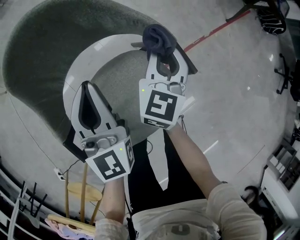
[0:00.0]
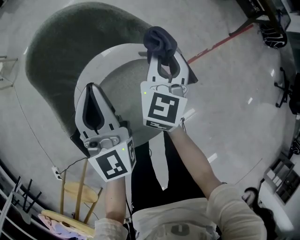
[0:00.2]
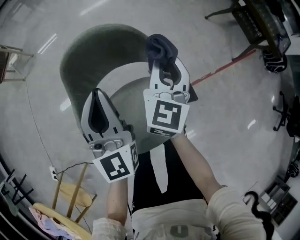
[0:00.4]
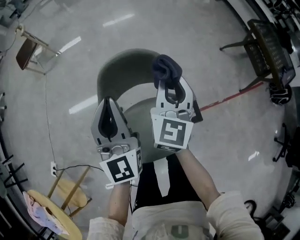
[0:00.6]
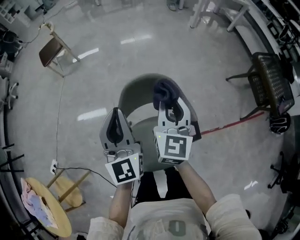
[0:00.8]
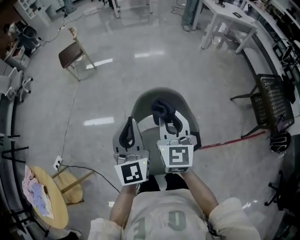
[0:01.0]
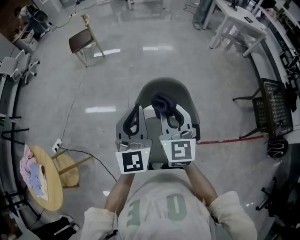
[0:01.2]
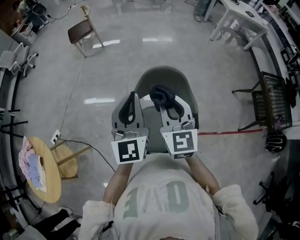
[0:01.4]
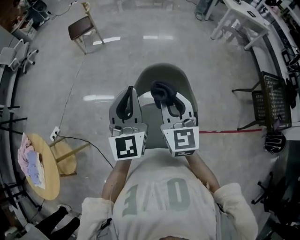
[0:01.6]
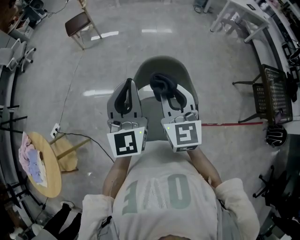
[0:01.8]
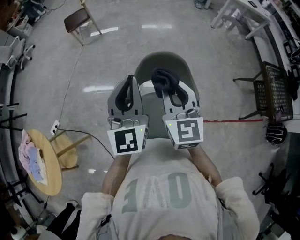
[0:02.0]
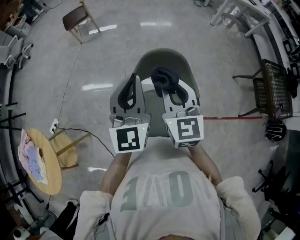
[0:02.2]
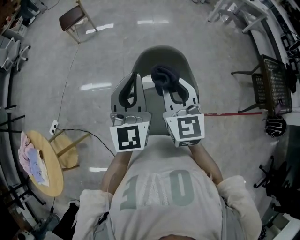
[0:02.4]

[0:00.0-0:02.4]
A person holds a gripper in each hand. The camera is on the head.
0:00.0 to 0:01.2: The grippers both shift upward by about 35 cm. The left gripper changes its angle by roughly 30 degrees. The right gripper changes its angle by some 60 degrees.
0:01.2 to 0:02.4: The grippers make only small movements.

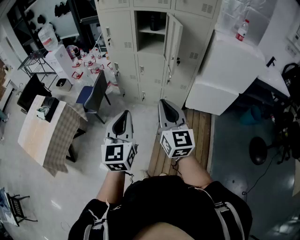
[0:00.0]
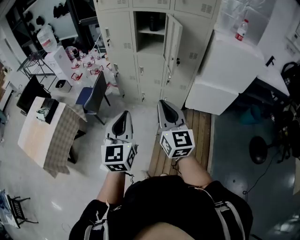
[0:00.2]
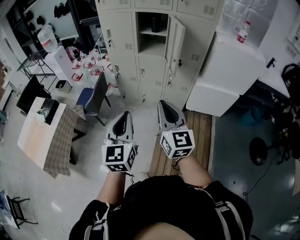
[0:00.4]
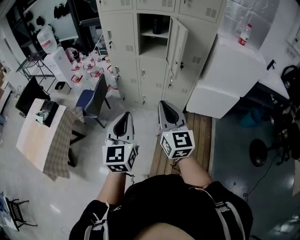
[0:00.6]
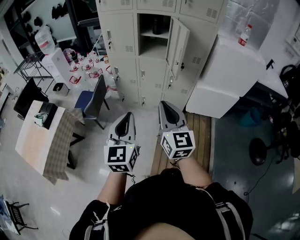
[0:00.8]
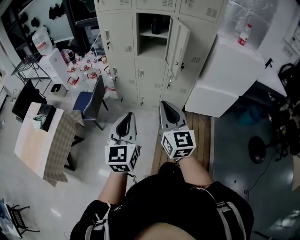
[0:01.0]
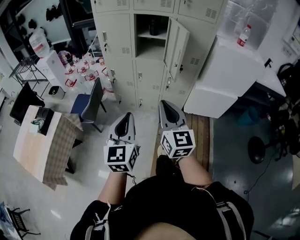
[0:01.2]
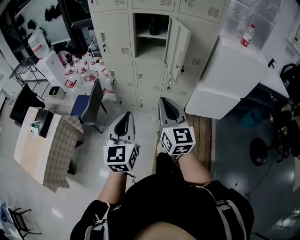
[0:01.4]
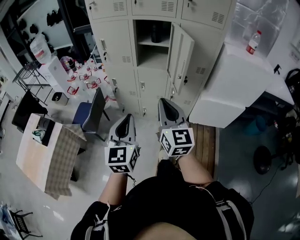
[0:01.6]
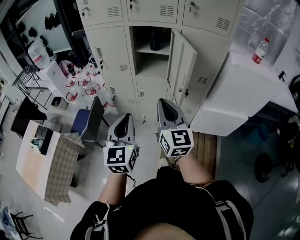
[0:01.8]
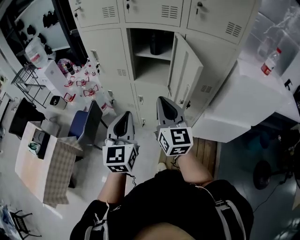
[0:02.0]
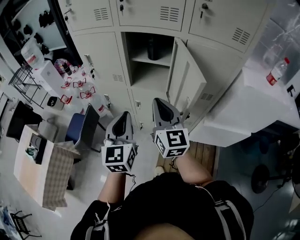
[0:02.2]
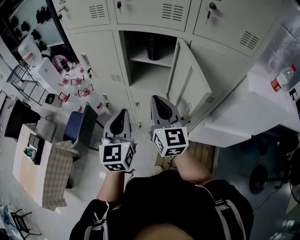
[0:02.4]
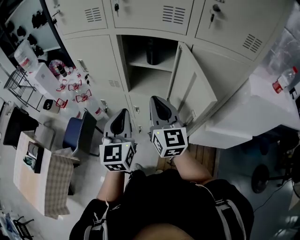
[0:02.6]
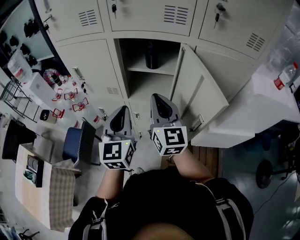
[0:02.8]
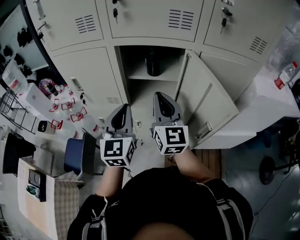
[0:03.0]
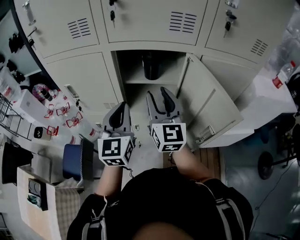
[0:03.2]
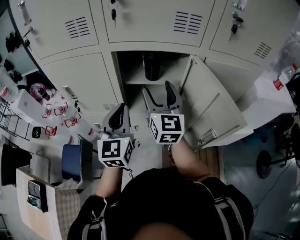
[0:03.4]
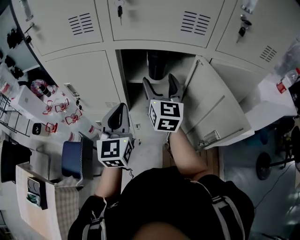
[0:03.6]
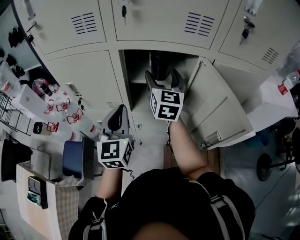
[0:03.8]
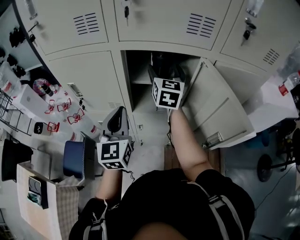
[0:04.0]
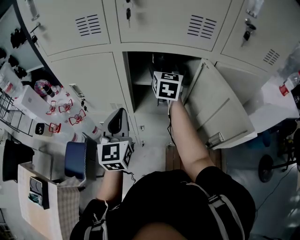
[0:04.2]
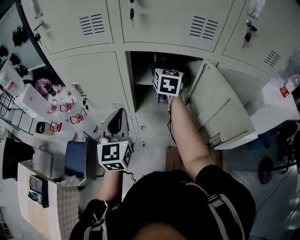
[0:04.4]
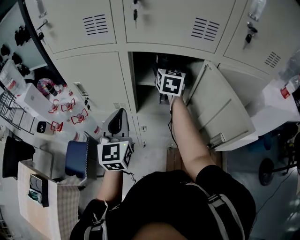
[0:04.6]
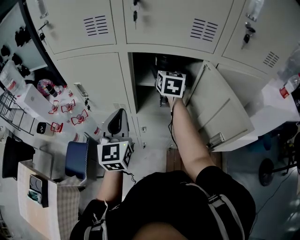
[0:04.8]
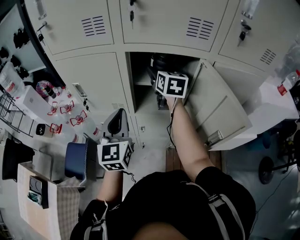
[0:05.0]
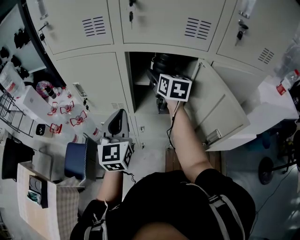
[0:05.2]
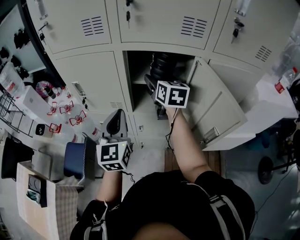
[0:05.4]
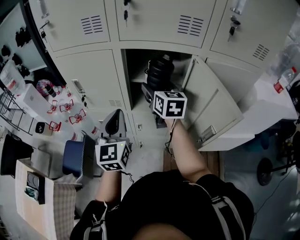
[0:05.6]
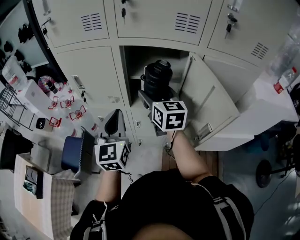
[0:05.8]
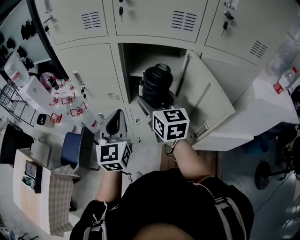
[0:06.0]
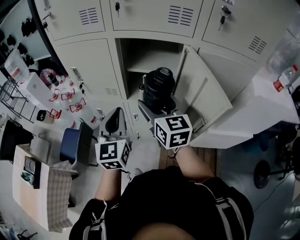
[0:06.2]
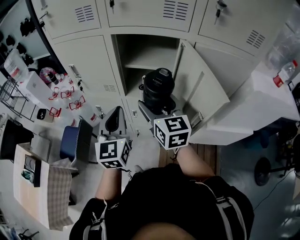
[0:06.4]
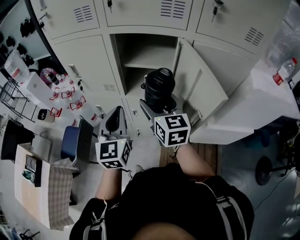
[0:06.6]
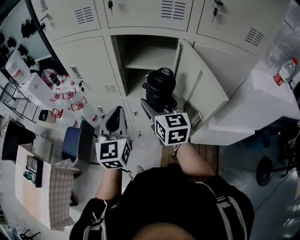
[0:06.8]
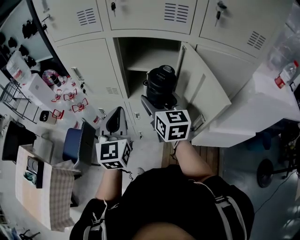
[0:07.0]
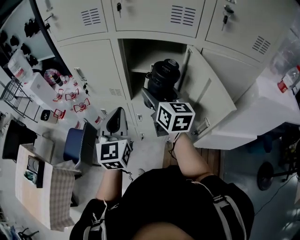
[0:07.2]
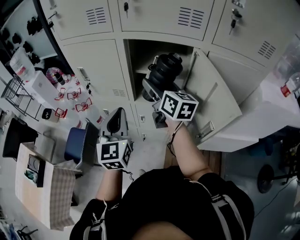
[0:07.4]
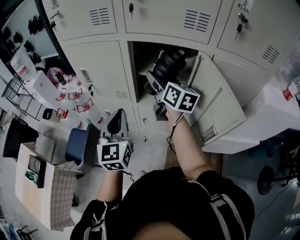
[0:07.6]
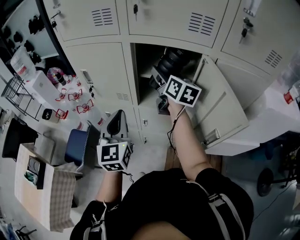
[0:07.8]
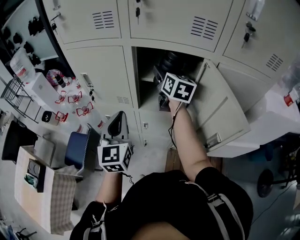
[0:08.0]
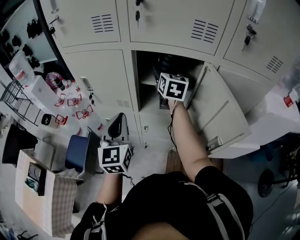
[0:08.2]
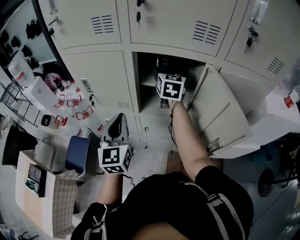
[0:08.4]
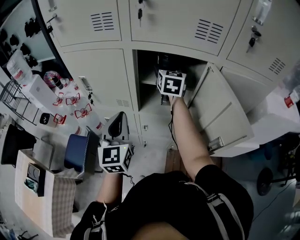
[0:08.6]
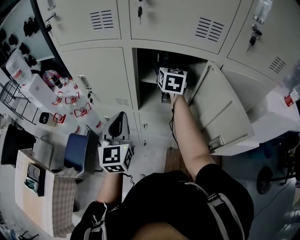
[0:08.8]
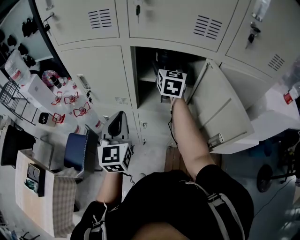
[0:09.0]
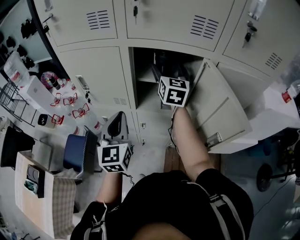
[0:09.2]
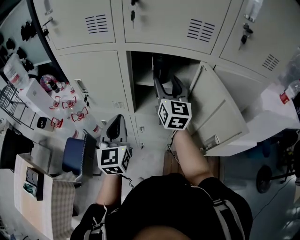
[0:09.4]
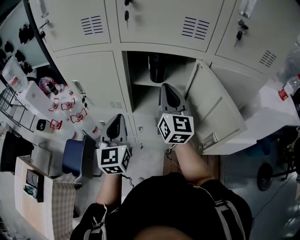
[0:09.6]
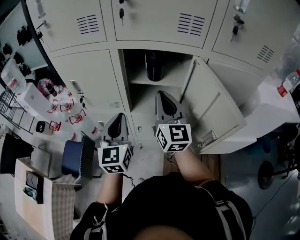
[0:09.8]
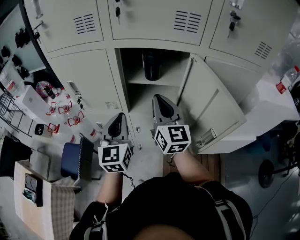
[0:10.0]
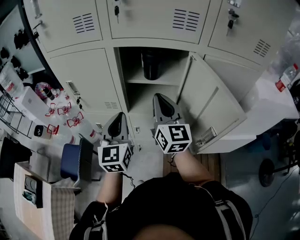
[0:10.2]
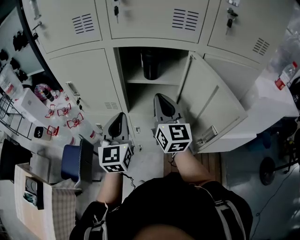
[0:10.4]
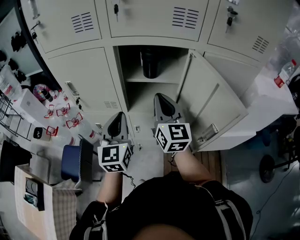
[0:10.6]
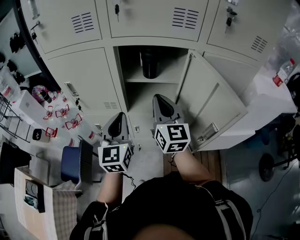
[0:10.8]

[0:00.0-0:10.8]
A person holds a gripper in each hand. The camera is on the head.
0:00.0 to 0:01.6: Both grippers travel together forward, approximately 20 cm.
0:01.6 to 0:03.0: The two grippers travel together, forward, some 50 cm.
0:03.0 to 0:04.6: The right gripper travels forward by roughly 25 cm, rotates roughly 20 degrees, and opens its fingers. Meanwhile the left gripper heads to the left, covering about 5 cm.
0:04.6 to 0:06.2: The right gripper is displaced backward by approximately 25 cm, and changes its angle by approximately 30 degrees. The left gripper moves backward and to the right, roughly 10 cm.
0:06.2 to 0:07.8: The right gripper is displaced forward by roughly 15 cm, and rotates about 20 degrees; the left gripper changes place by some 5 cm.
0:07.8 to 0:09.2: The right gripper turns by some 30 degrees.
0:09.2 to 0:10.8: The right gripper moves backward, roughly 15 cm, and closes its fingers.

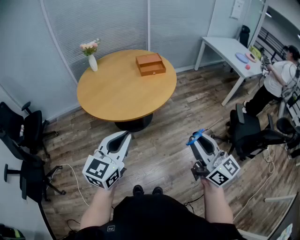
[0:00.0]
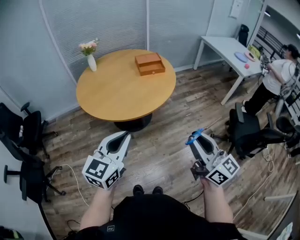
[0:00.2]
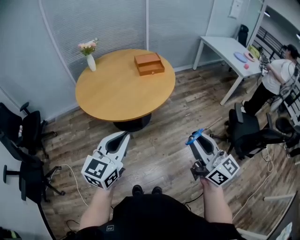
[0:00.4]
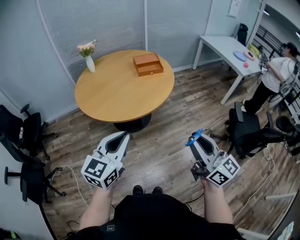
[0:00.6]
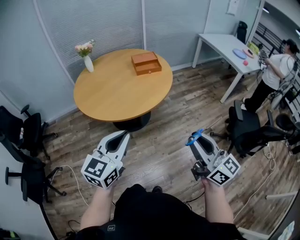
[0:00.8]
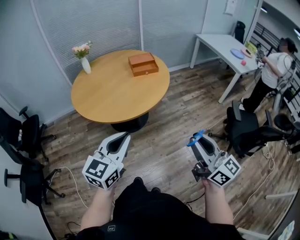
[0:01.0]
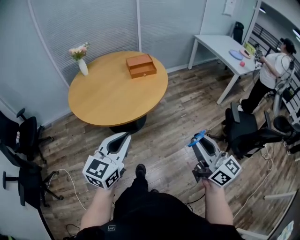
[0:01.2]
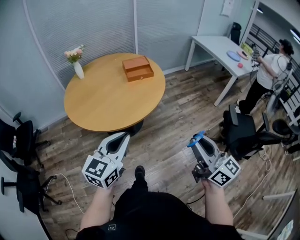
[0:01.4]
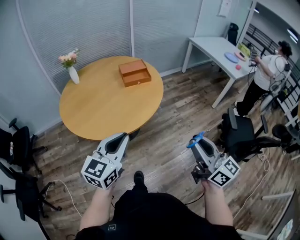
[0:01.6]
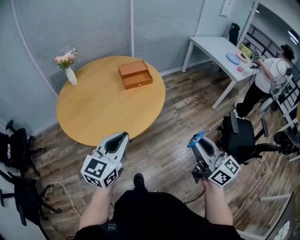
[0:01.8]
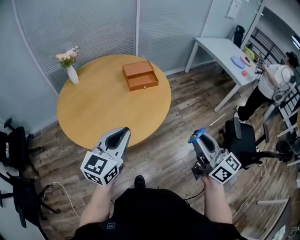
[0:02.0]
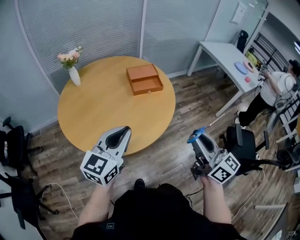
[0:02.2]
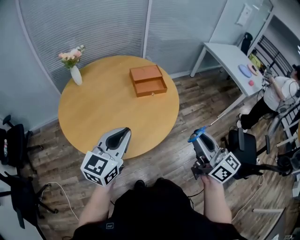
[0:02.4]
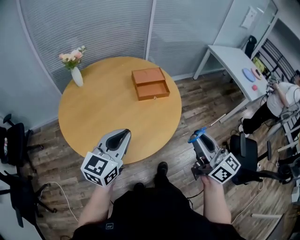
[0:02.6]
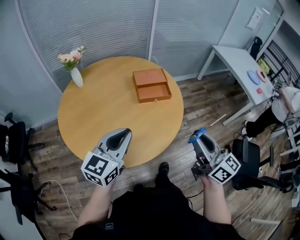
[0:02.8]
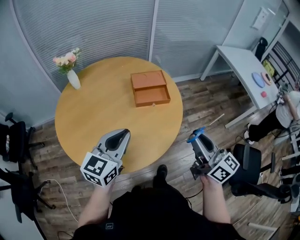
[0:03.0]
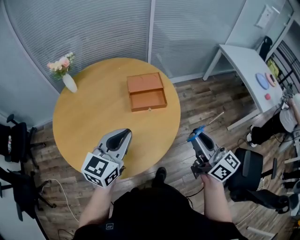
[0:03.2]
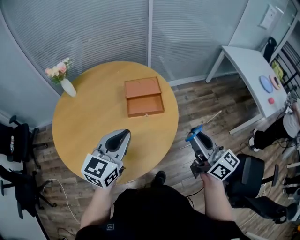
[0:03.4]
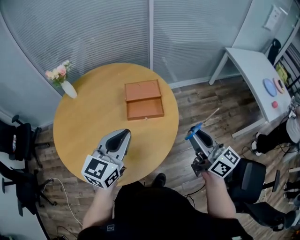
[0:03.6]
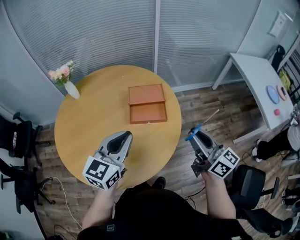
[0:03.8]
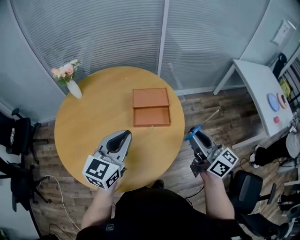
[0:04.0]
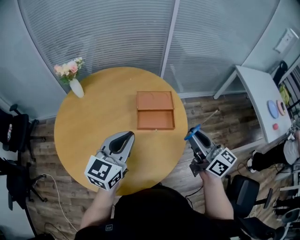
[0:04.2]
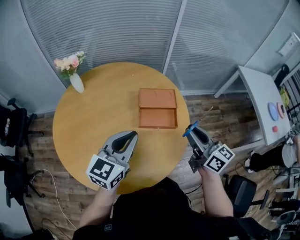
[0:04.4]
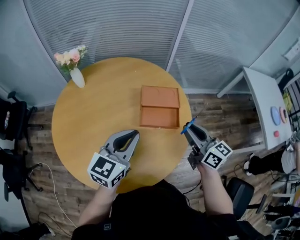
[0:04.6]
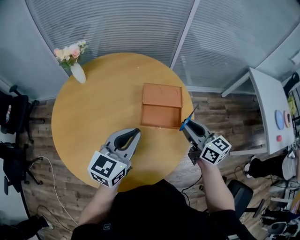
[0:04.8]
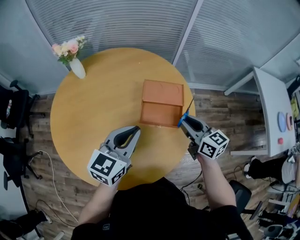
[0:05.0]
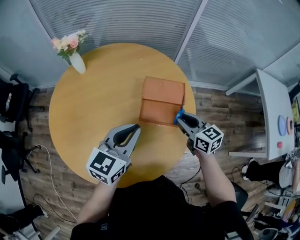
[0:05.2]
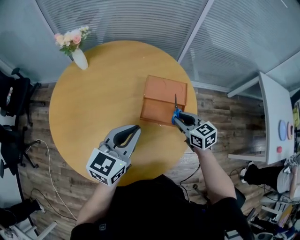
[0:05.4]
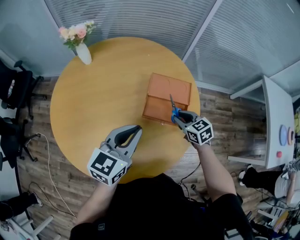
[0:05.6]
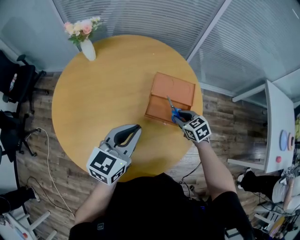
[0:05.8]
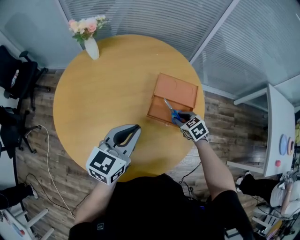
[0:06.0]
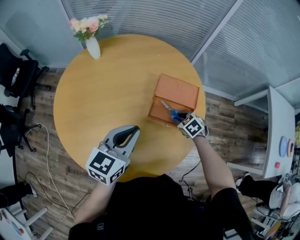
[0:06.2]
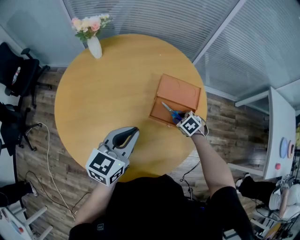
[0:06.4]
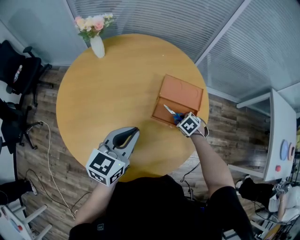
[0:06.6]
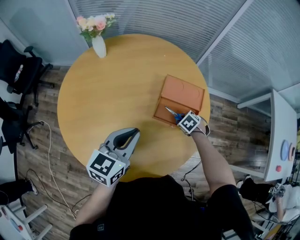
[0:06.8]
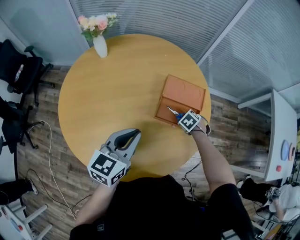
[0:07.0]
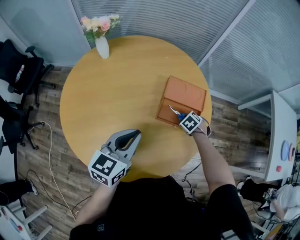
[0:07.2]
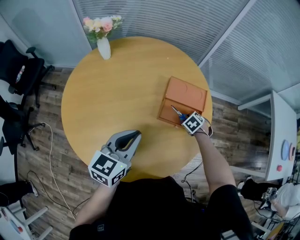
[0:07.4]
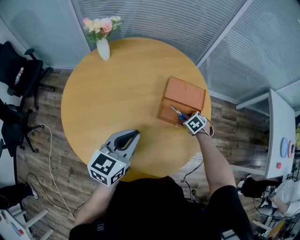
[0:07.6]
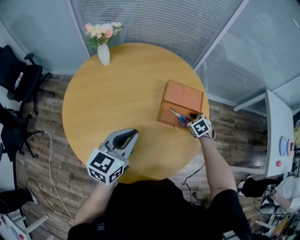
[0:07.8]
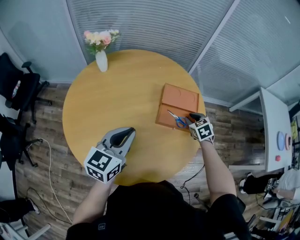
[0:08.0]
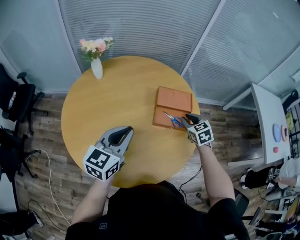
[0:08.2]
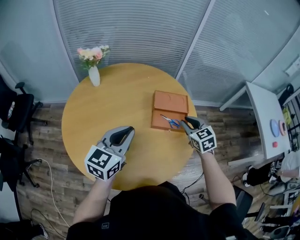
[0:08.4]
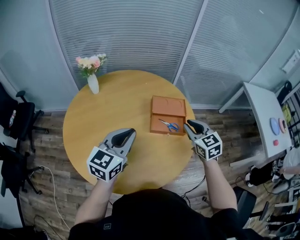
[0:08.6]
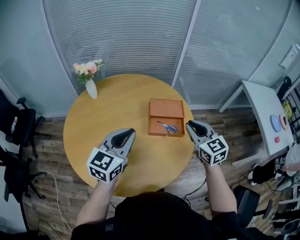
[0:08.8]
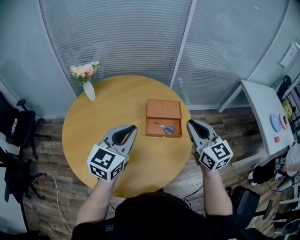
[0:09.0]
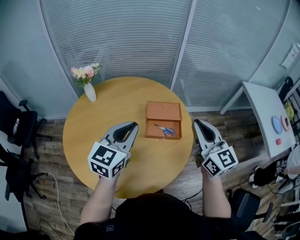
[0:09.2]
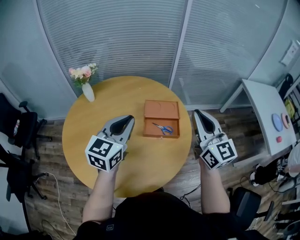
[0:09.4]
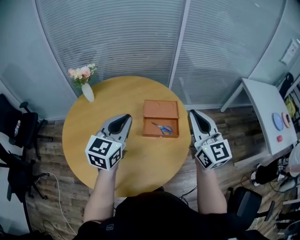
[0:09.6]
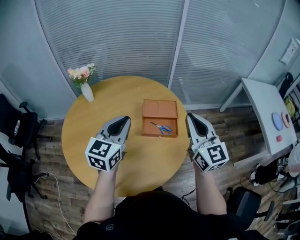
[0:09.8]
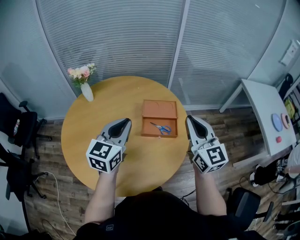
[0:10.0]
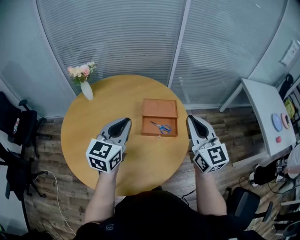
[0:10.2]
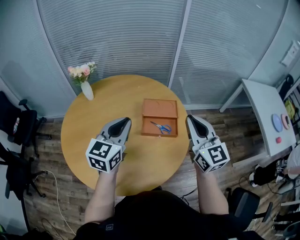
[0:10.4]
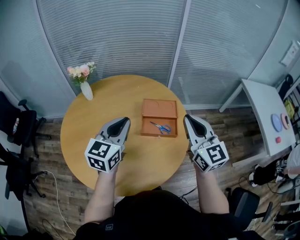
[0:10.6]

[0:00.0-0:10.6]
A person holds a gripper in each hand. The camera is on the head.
0:00.0 to 0:01.6: The two grippers go about 15 cm forward and to the right.
0:01.6 to 0:03.0: Both grippers travel together forward, roughly 30 cm.
0:03.0 to 0:04.6: The left gripper heads forward, covering approximately 15 cm; the right gripper is displaced forward by some 25 cm.
0:04.6 to 0:06.0: The left gripper shifts by roughly 5 cm; the right gripper goes approximately 25 cm downward and forward, and tilts its fingers some 50 degrees downward.
0:06.0 to 0:07.6: The left gripper ends up about 5 cm from where it was, while the right gripper is displaced downward by approximately 5 cm, and turns by approximately 20 degrees.
0:07.6 to 0:09.0: The right gripper goes roughly 40 cm upward, points its fingers approximately 70 degrees further upward, and closes its fingers. The left gripper travels upward by roughly 10 cm, and changes its angle by some 20 degrees.
